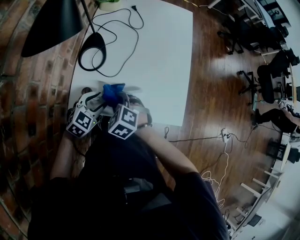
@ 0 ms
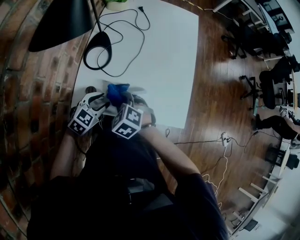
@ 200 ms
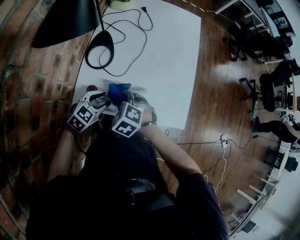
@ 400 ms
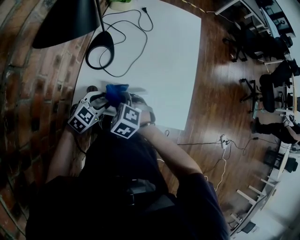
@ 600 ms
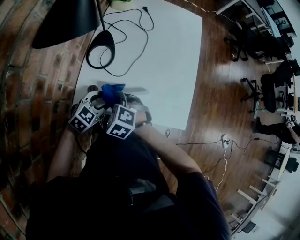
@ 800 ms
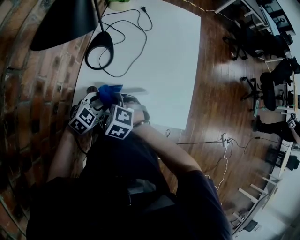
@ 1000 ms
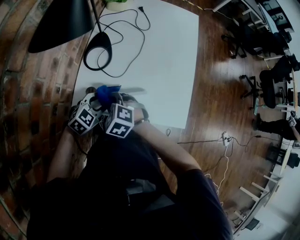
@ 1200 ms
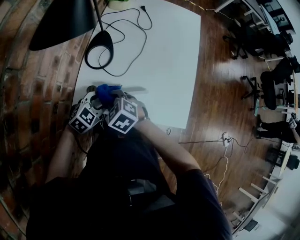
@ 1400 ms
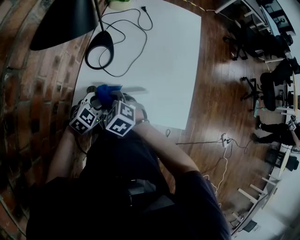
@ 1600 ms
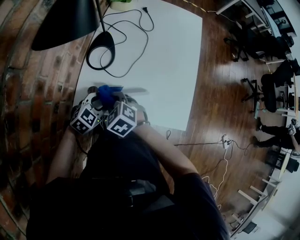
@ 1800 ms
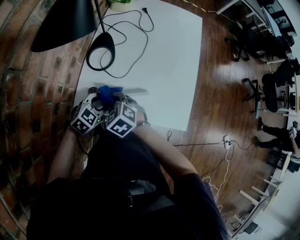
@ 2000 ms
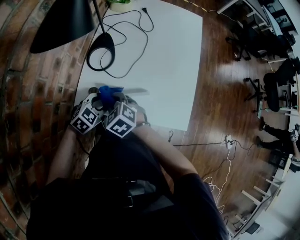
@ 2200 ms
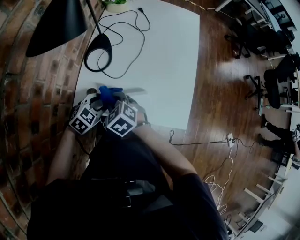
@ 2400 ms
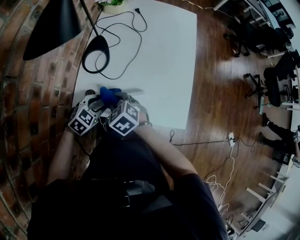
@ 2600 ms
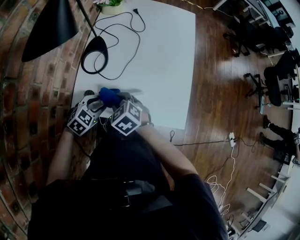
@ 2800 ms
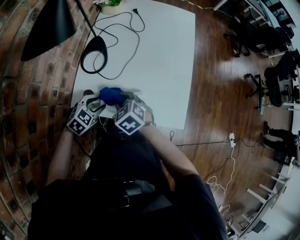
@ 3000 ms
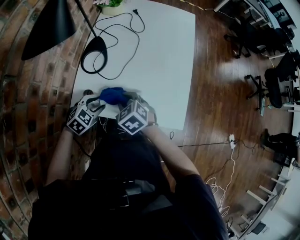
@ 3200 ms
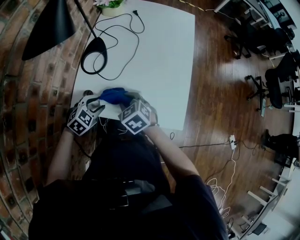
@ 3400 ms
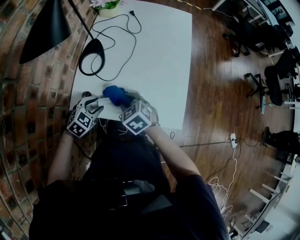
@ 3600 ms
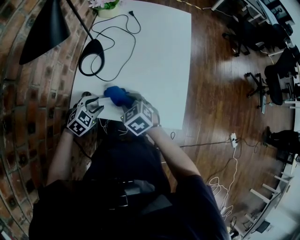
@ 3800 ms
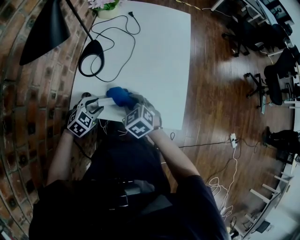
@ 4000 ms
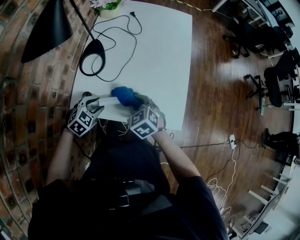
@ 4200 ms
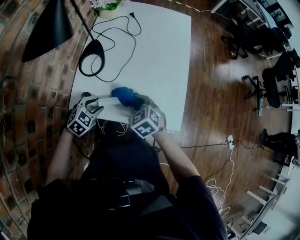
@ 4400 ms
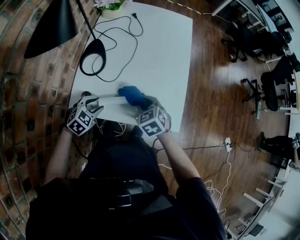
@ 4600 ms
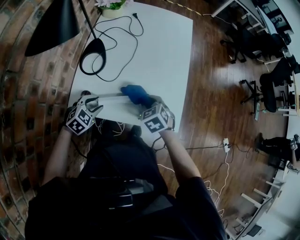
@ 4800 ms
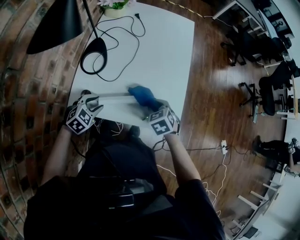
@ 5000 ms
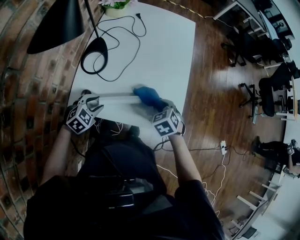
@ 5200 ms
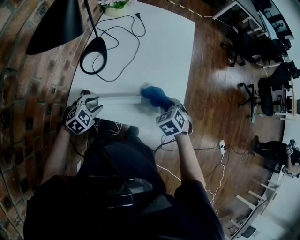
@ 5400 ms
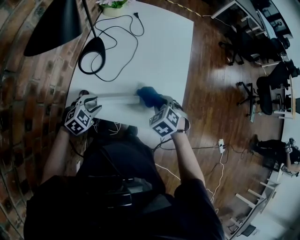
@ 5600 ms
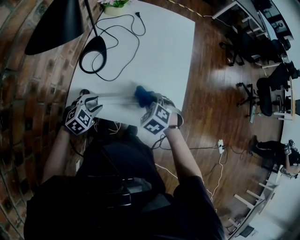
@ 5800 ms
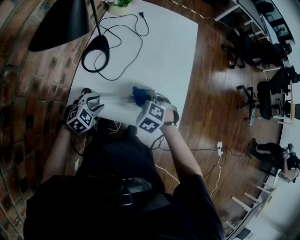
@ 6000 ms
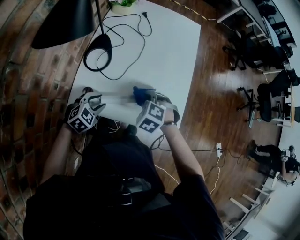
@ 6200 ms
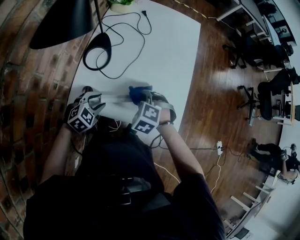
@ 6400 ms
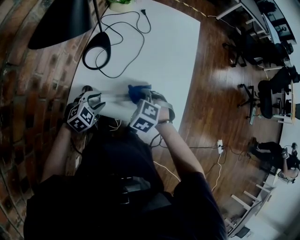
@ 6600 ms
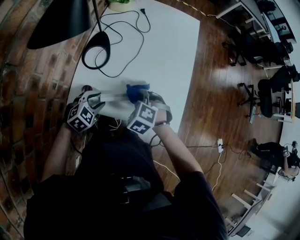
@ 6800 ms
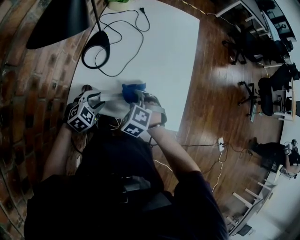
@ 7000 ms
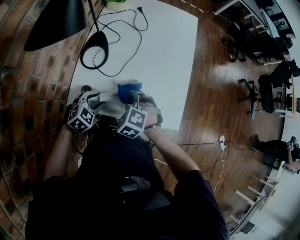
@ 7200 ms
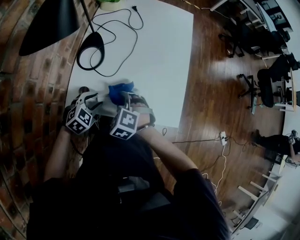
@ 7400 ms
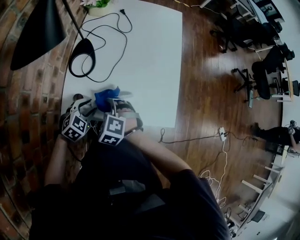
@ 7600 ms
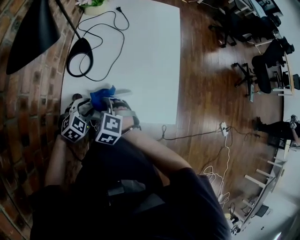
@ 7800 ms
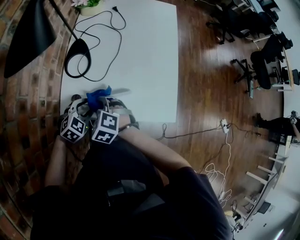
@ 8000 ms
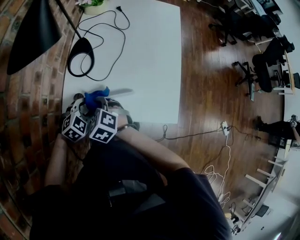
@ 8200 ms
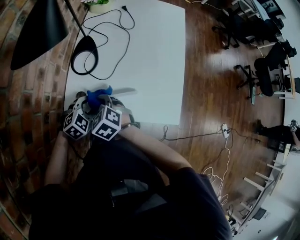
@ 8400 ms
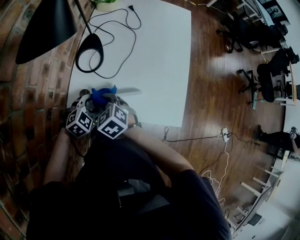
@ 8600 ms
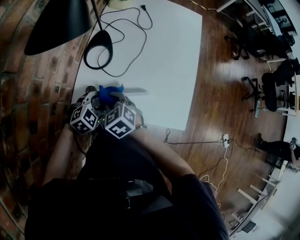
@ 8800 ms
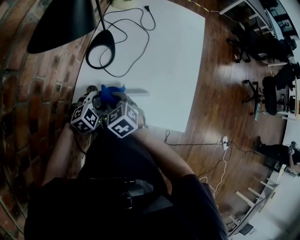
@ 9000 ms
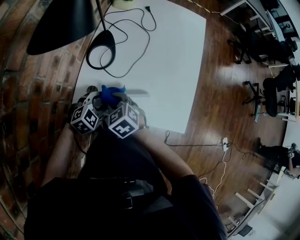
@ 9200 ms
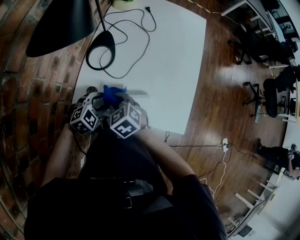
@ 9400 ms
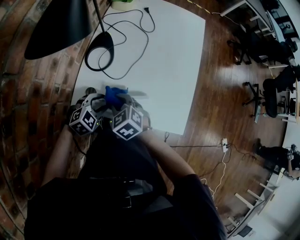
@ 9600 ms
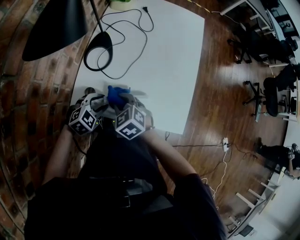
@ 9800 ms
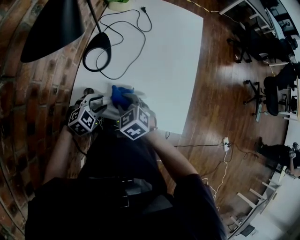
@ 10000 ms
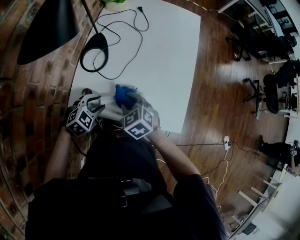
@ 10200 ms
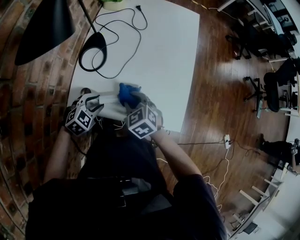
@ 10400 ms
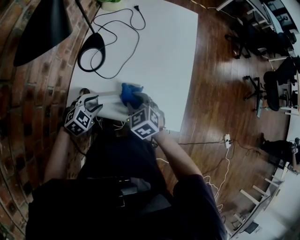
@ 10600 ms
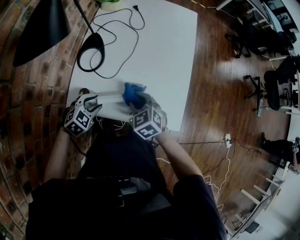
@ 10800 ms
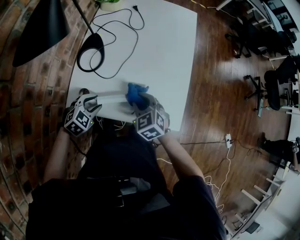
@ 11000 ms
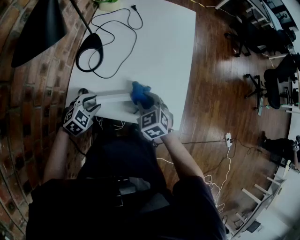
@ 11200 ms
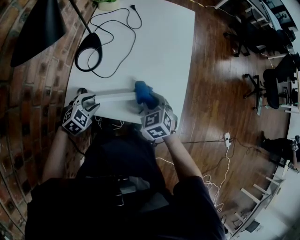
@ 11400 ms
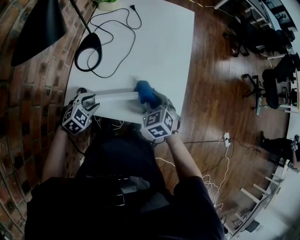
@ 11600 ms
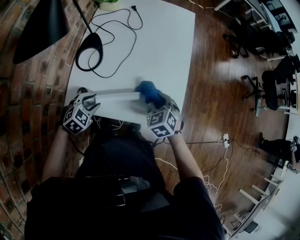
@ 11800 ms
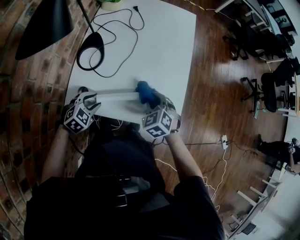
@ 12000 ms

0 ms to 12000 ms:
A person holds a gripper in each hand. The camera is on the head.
0 ms to 1600 ms: The right gripper heads to the left, covering roughly 5 cm.
1600 ms to 3000 ms: The right gripper is displaced to the right by roughly 5 cm.
3000 ms to 4400 ms: The right gripper shifts approximately 10 cm to the right.
4400 ms to 6000 ms: The right gripper travels to the right and back again, approximately 15 cm each way, and turns by roughly 30 degrees.
6000 ms to 7600 ms: The right gripper heads to the left and backward, covering about 15 cm.
7600 ms to 9000 ms: The right gripper changes place by roughly 5 cm, and swivels about 30 degrees.
9000 ms to 10400 ms: The right gripper moves to the right, some 10 cm.
10400 ms to 12000 ms: The right gripper shifts some 10 cm to the right.

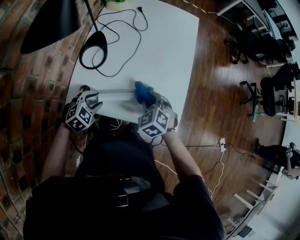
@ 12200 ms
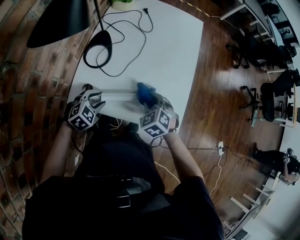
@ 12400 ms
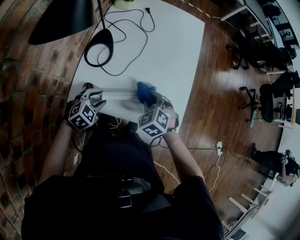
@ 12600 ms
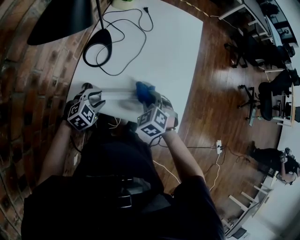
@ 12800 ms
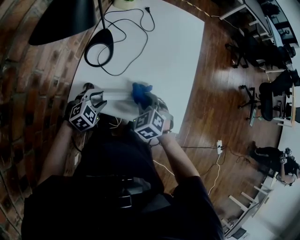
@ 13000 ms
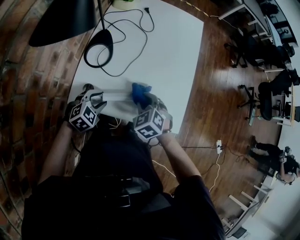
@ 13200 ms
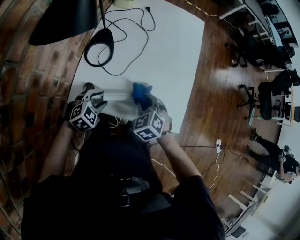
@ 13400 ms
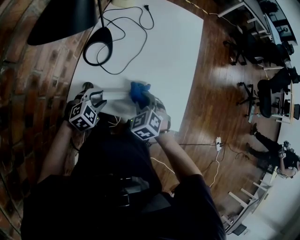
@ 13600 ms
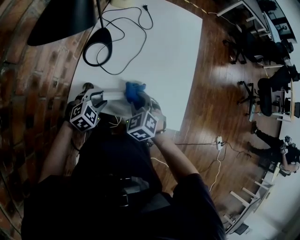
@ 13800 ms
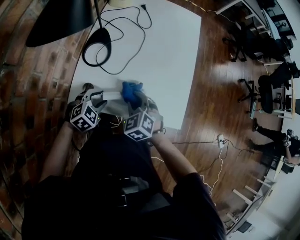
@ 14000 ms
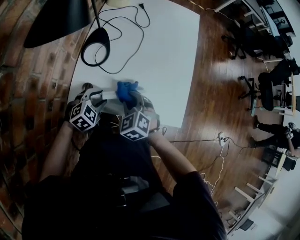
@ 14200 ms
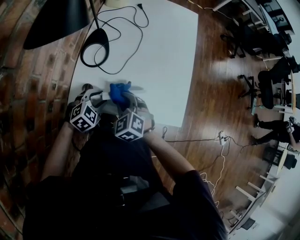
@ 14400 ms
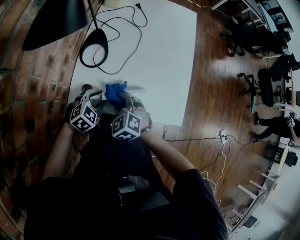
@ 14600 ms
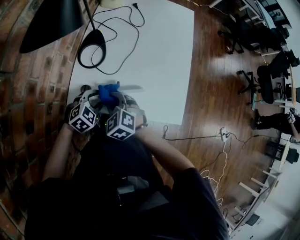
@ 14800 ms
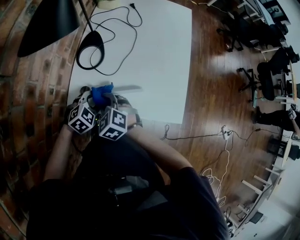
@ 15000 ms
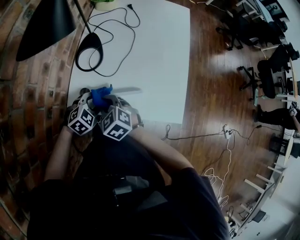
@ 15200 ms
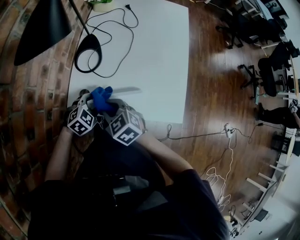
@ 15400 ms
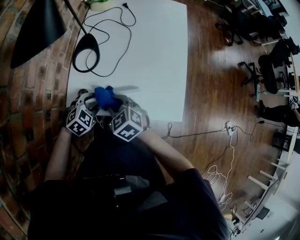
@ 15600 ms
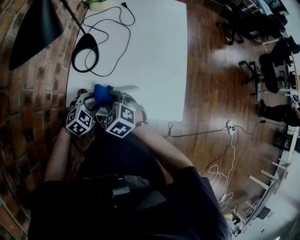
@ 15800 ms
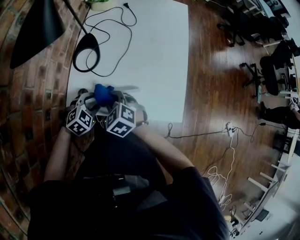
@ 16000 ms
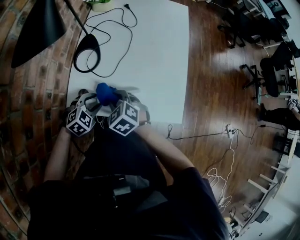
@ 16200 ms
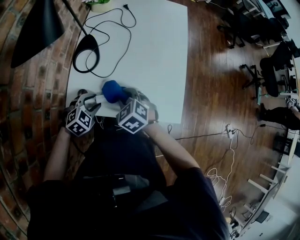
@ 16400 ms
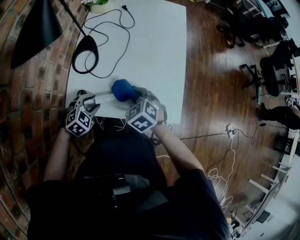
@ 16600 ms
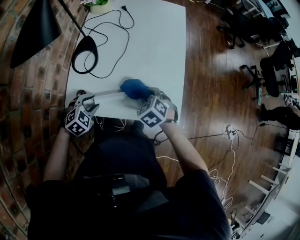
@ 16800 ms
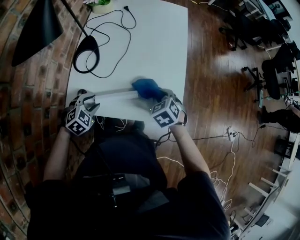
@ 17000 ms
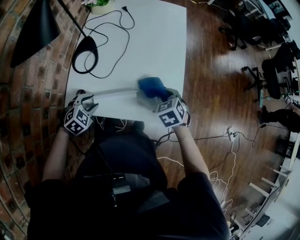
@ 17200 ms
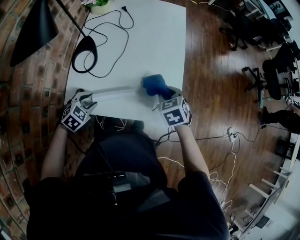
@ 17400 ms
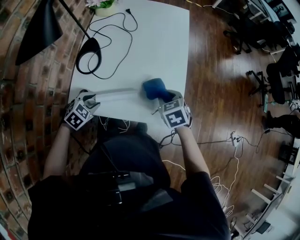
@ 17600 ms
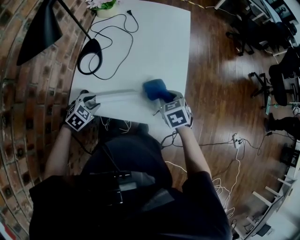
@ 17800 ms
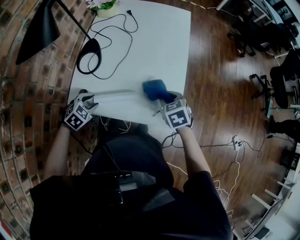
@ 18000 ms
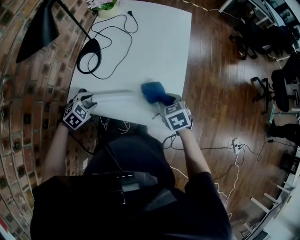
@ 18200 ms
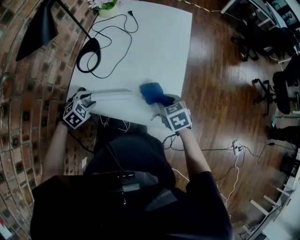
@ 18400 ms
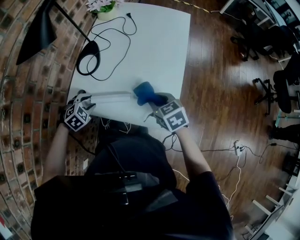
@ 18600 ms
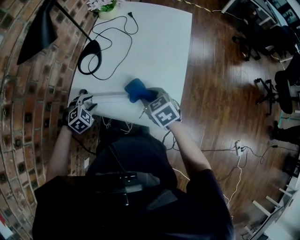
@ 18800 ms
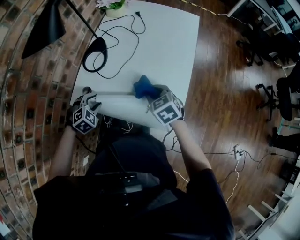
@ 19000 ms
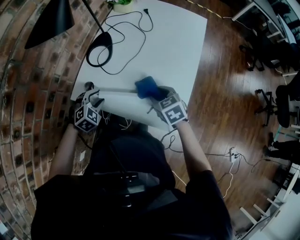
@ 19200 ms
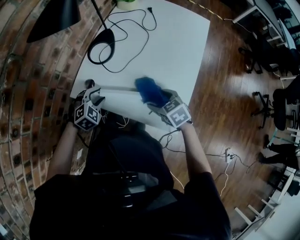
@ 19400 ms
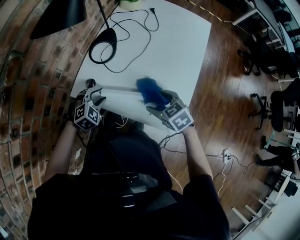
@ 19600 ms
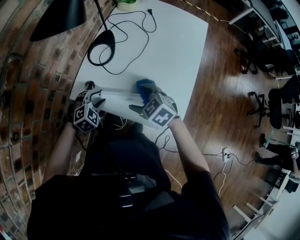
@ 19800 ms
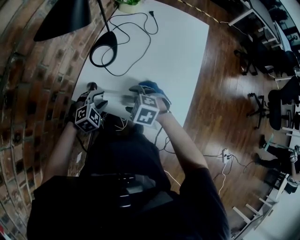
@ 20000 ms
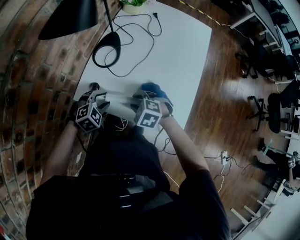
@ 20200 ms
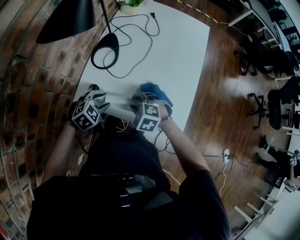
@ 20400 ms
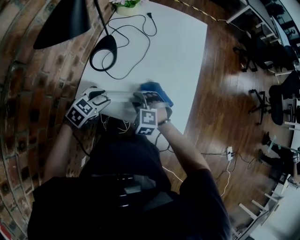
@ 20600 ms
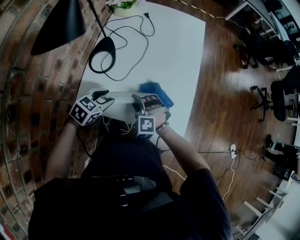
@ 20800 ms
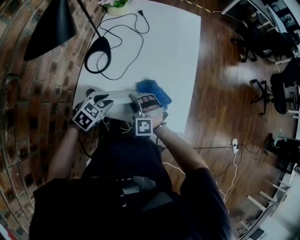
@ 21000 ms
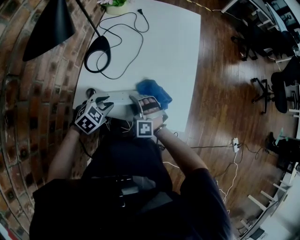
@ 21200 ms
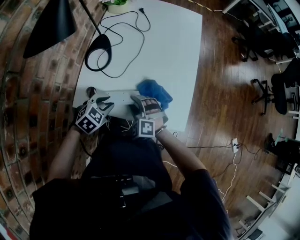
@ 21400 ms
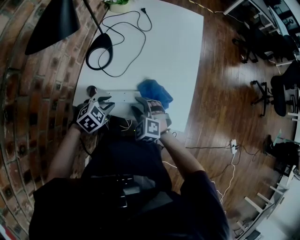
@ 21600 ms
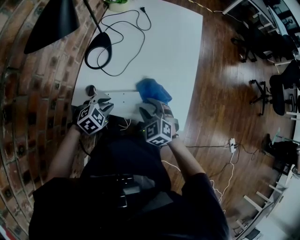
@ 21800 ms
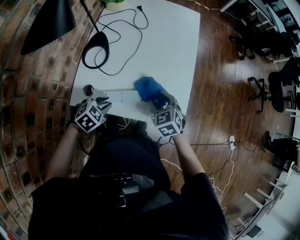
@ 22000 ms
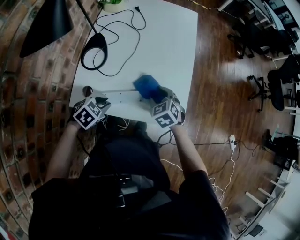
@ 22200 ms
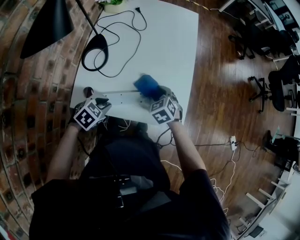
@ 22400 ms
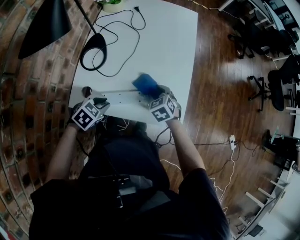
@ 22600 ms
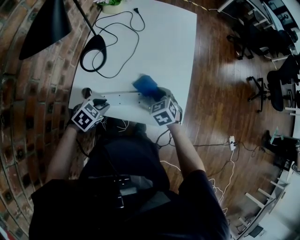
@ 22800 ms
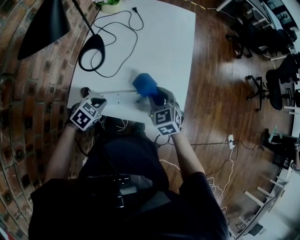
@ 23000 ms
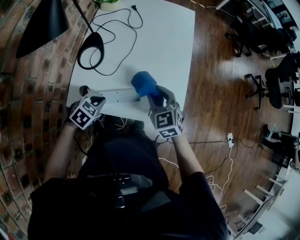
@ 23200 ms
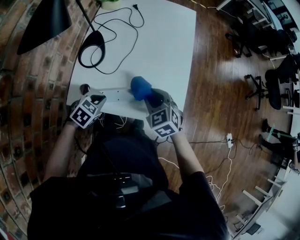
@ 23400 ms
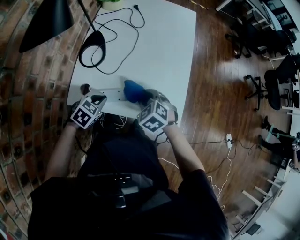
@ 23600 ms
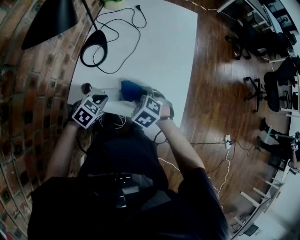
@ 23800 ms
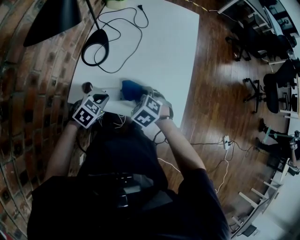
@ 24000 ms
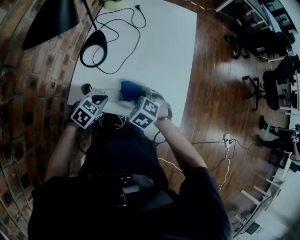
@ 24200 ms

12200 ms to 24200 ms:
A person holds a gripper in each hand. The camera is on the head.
12200 ms to 13800 ms: The right gripper is displaced to the left by approximately 5 cm.
13800 ms to 15200 ms: The right gripper travels to the left by some 10 cm, and swivels some 20 degrees.
15200 ms to 16600 ms: The right gripper shifts about 15 cm to the right.
16600 ms to 18200 ms: The right gripper goes about 15 cm to the right.
18200 ms to 19800 ms: The right gripper heads to the left, covering about 20 cm, swivels some 40 degrees, and opens.
19800 ms to 21200 ms: The right gripper travels downward by some 5 cm, swivels approximately 50 degrees, and closes up.
21200 ms to 22600 ms: The right gripper is displaced to the right and forward by roughly 15 cm, and rolls clockwise, seen from behind, by about 50 degrees.
22600 ms to 24200 ms: The right gripper heads to the left and backward, covering some 10 cm, goes upward and returns, some 10 cm each way, and rotates some 20 degrees.
